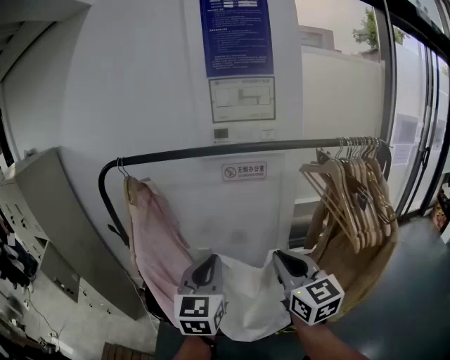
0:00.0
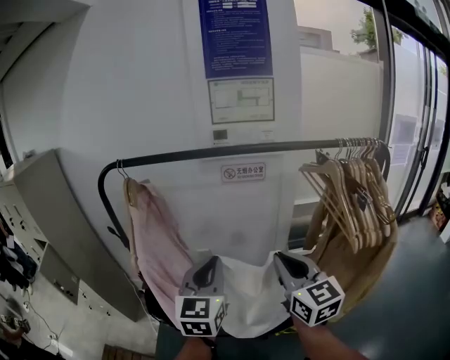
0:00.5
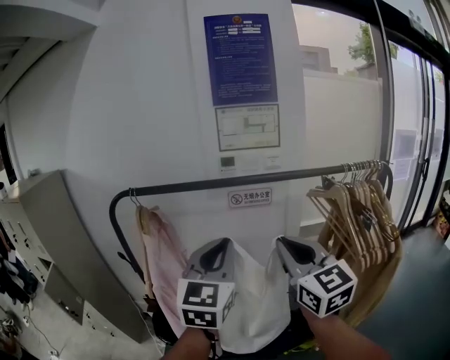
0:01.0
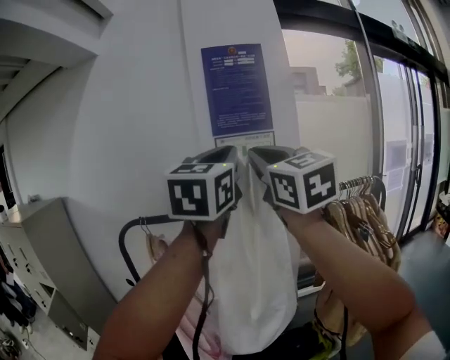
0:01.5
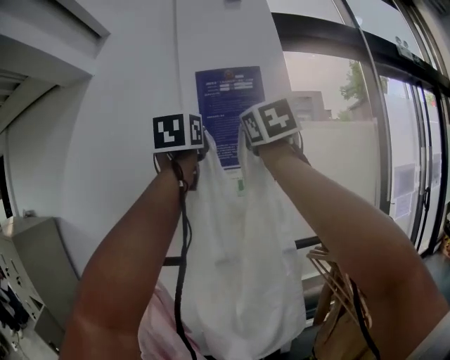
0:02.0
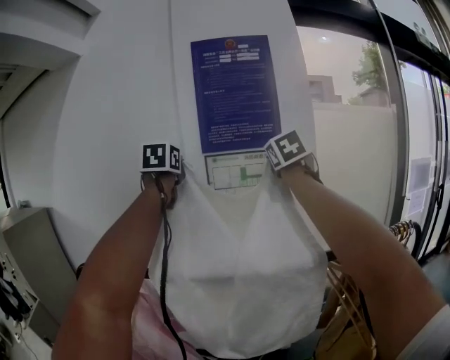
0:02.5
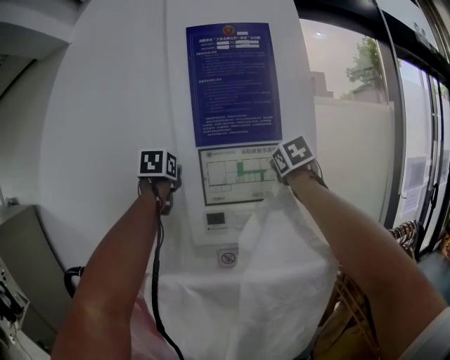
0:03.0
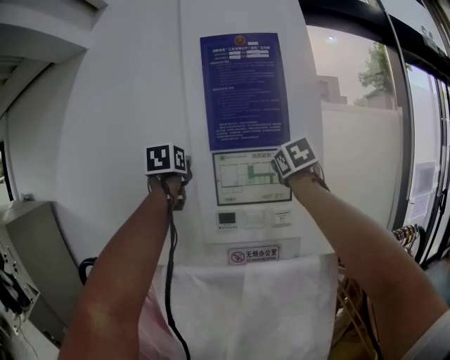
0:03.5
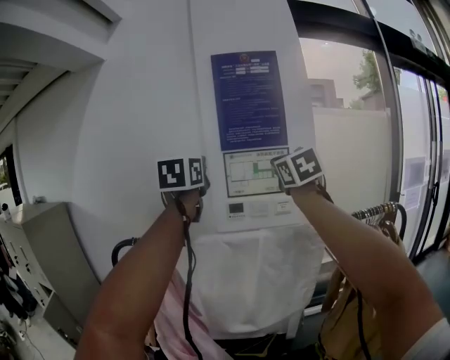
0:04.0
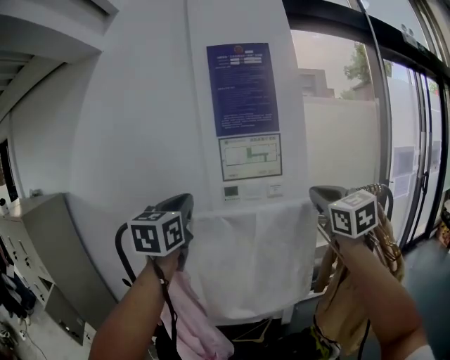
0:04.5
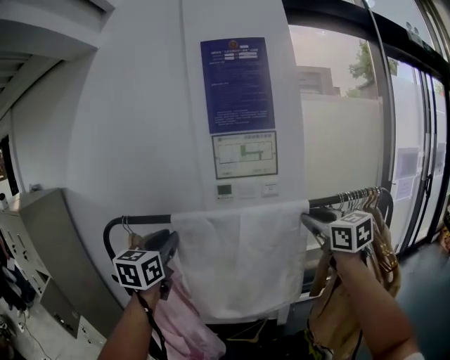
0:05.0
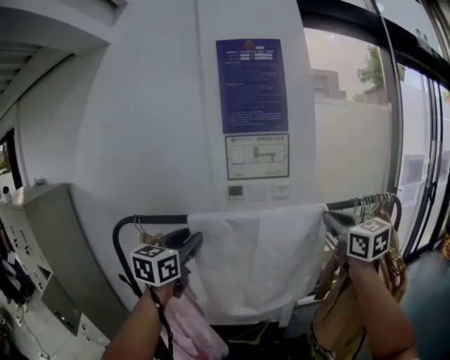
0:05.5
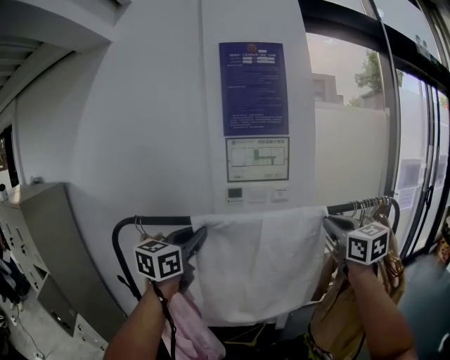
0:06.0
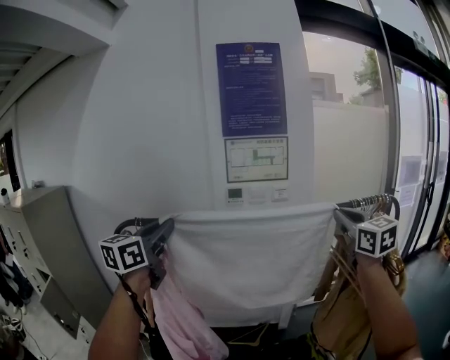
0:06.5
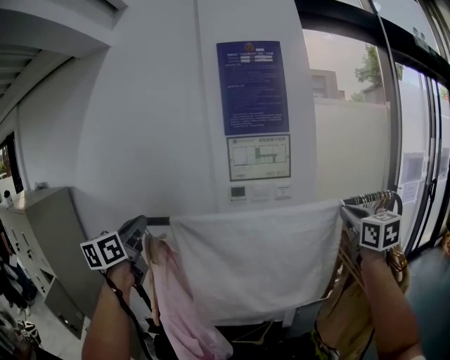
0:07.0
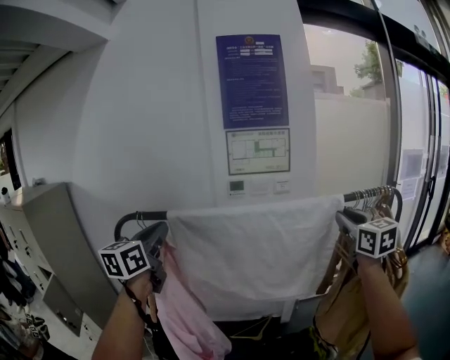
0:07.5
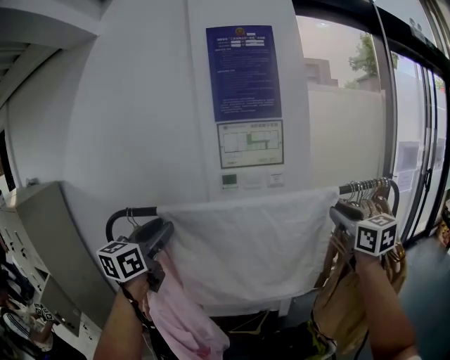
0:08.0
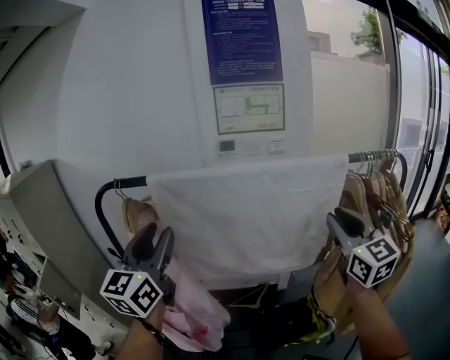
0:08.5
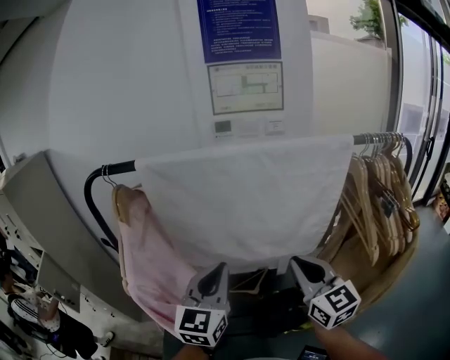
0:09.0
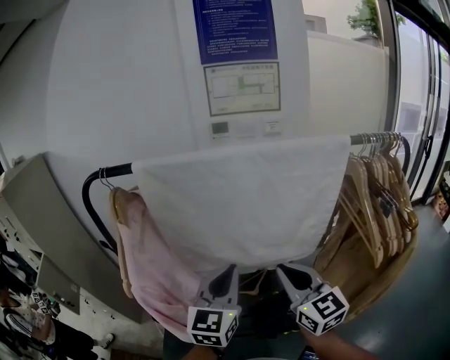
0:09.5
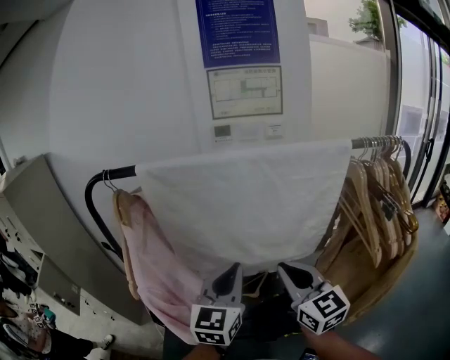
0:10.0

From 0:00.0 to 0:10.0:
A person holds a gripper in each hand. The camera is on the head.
From 0:00.0 to 0:02.0: Both grippers move upward and forward, roughly 60 cm. The right gripper rotates about 30 degrees.
From 0:02.0 to 0:04.0: The right gripper is displaced downward by about 15 cm, and moves some 30 cm forward and comes back; the left gripper shifts approximately 15 cm downward and to the left, and reaches about 30 cm forward, then returns.
From 0:04.0 to 0:06.0: The left gripper heads downward and backward, covering approximately 25 cm, changes its angle by roughly 20 degrees, and opens, then closes once more. The right gripper is displaced downward, backward and to the right by roughly 25 cm.
From 0:06.0 to 0:08.0: The left gripper moves to the left, approximately 10 cm, and opens.
From 0:08.0 to 0:10.0: The left gripper moves downward, to the right and backward, roughly 30 cm, and closes its fingers. Meanwhile the right gripper goes about 30 cm downward, to the left and backward.

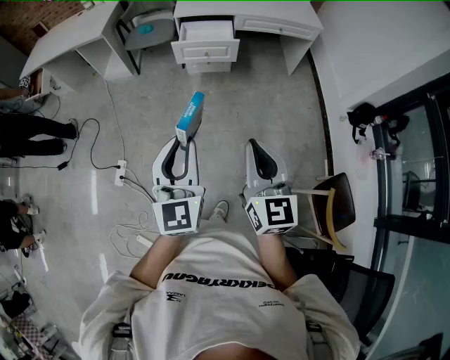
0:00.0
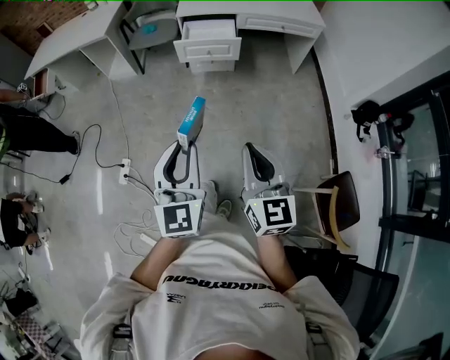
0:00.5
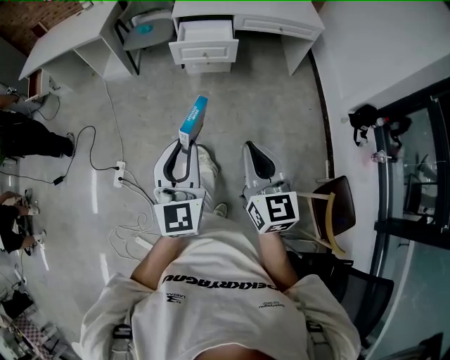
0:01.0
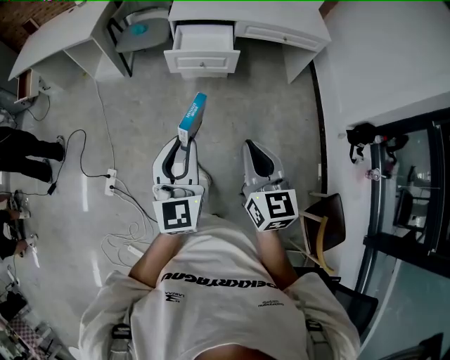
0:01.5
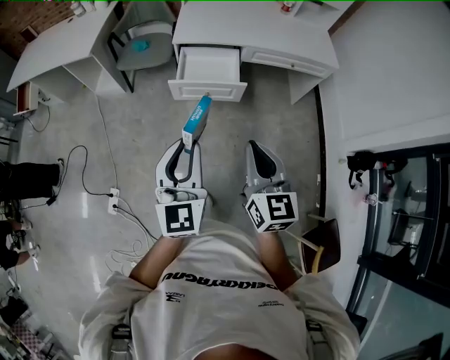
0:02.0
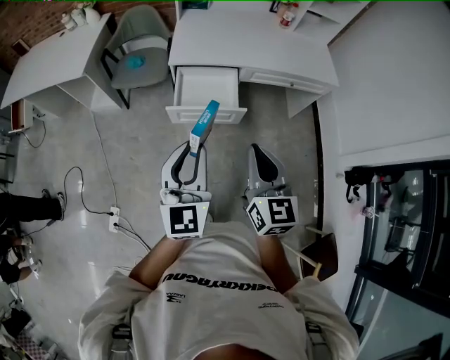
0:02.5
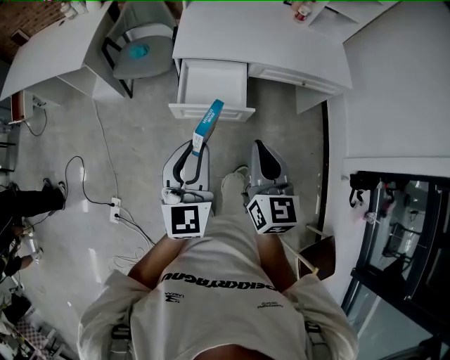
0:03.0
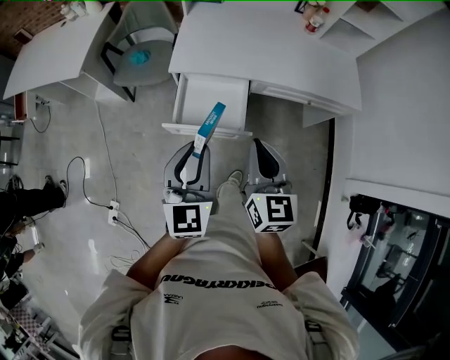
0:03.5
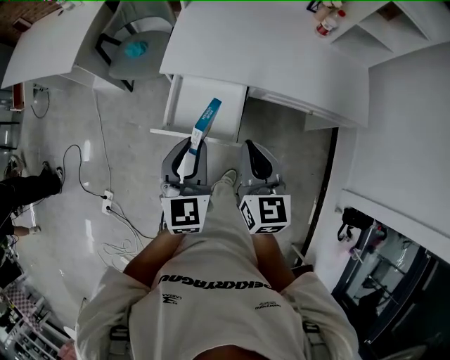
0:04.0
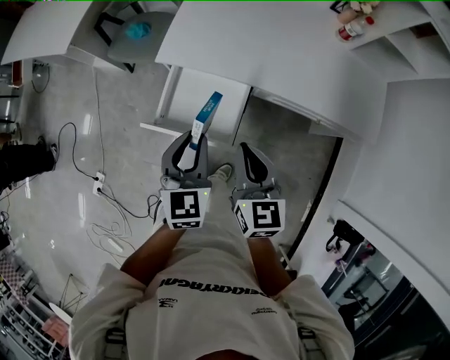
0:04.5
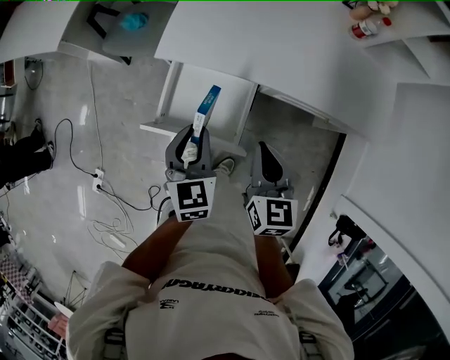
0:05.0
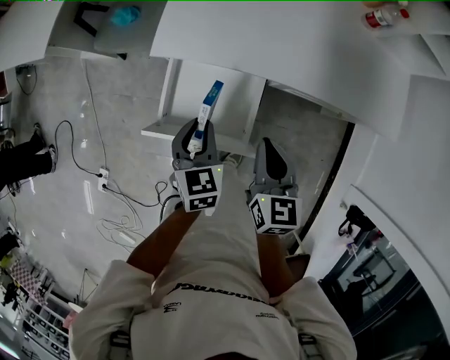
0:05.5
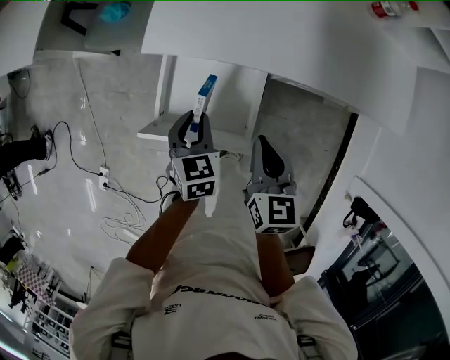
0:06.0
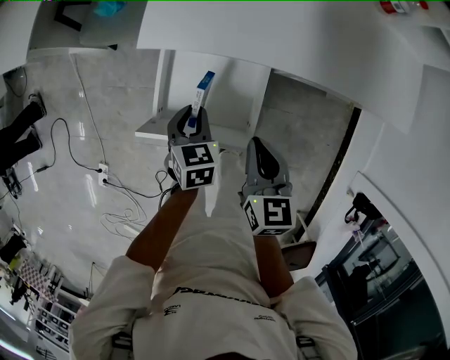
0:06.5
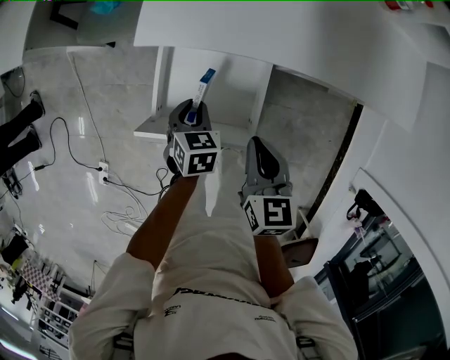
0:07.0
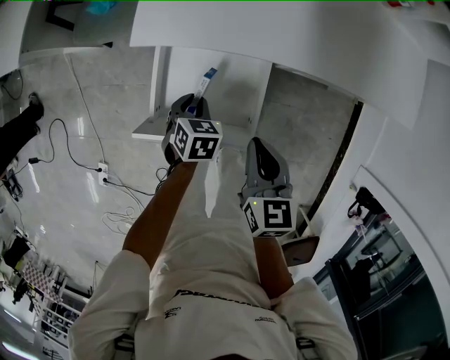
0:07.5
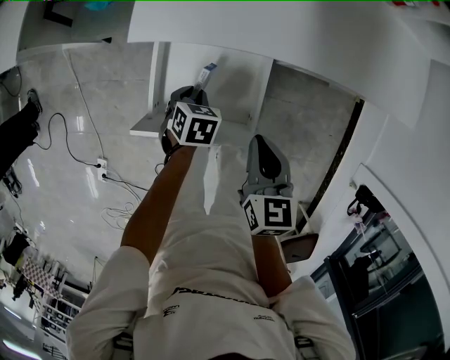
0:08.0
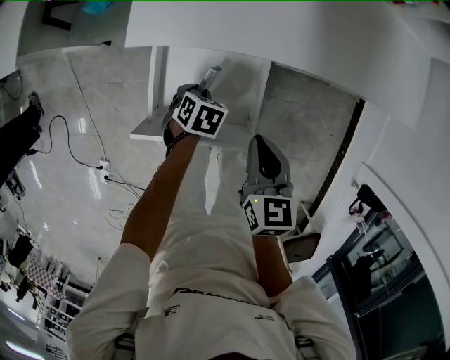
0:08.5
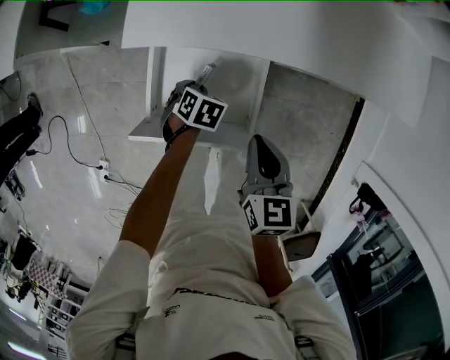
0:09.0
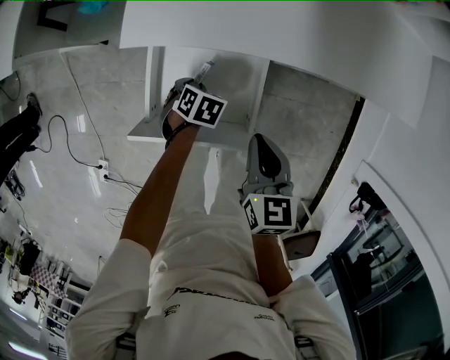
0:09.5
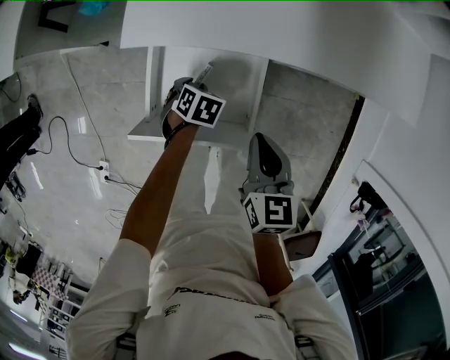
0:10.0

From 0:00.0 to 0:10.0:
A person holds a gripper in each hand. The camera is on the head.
From 0:00.0 to 0:02.0: The two grippers go about 35 cm forward.
From 0:02.0 to 0:04.0: The pair of grippers is taken forward, some 40 cm.
From 0:04.0 to 0:06.0: The grippers both shift downward and forward by some 25 cm. The left gripper swivels roughly 30 degrees.
From 0:06.0 to 0:08.0: The right gripper shifts by approximately 5 cm. Meanwhile the left gripper goes approximately 15 cm downward, and turns by roughly 30 degrees.
From 0:08.0 to 0:10.0: The left gripper ends up some 5 cm from where it was.

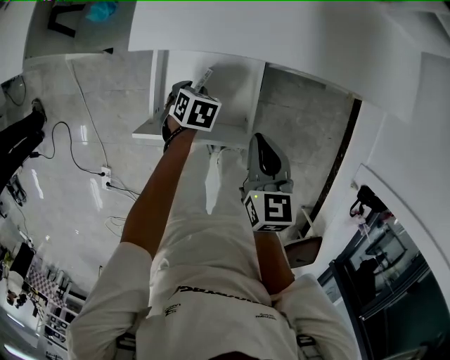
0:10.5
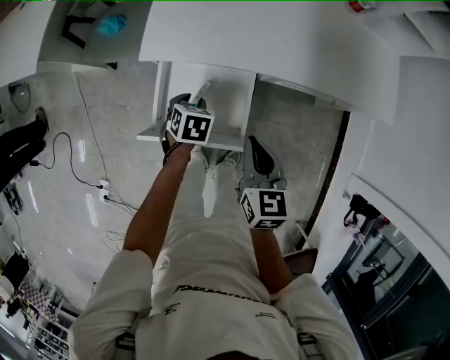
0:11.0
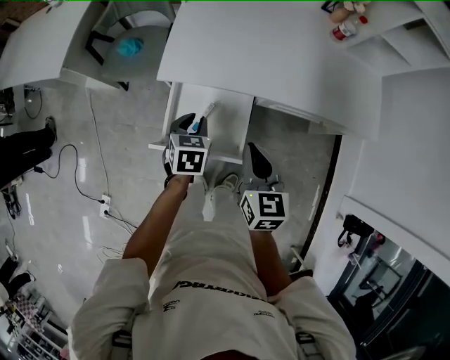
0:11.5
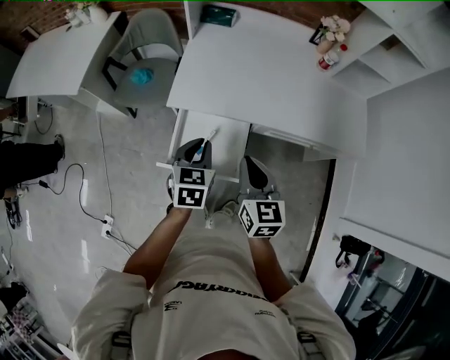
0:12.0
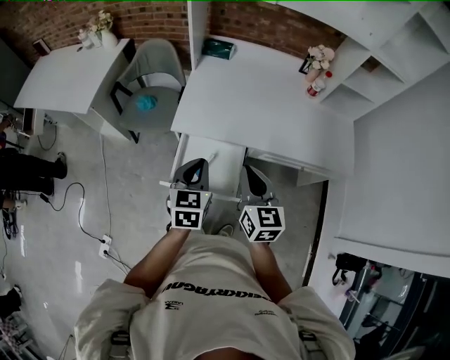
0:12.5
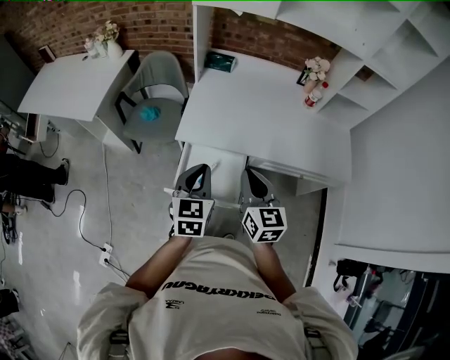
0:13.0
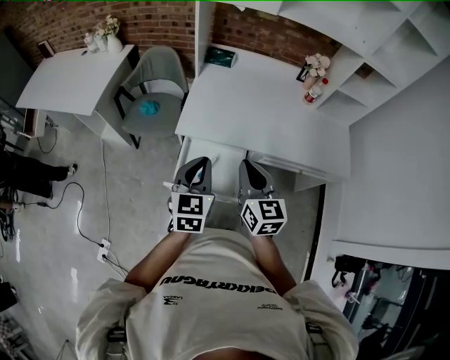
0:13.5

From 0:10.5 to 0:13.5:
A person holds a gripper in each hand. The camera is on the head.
From 0:10.5 to 0:12.0: The left gripper is displaced upward by about 35 cm, angles its fingers upward, by some 40 degrees, and closes up. Meanwhile the right gripper is displaced upward by approximately 20 cm.
From 0:12.0 to 0:13.5: Both grippers move upward, roughly 10 cm.

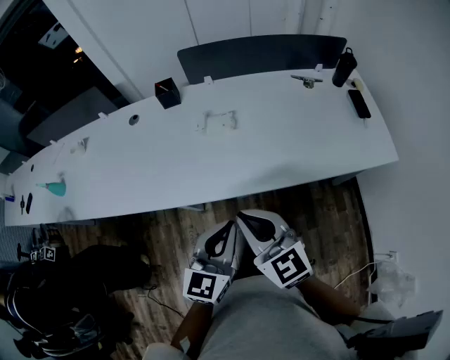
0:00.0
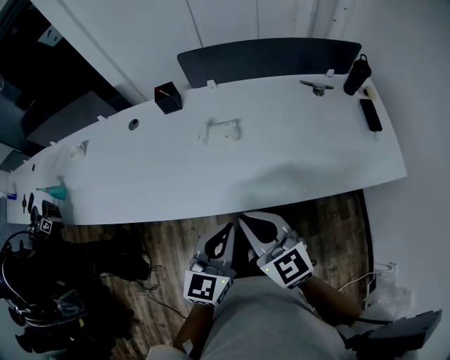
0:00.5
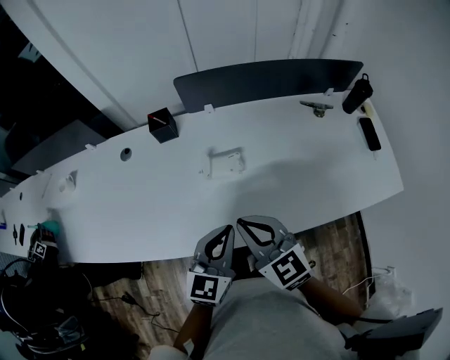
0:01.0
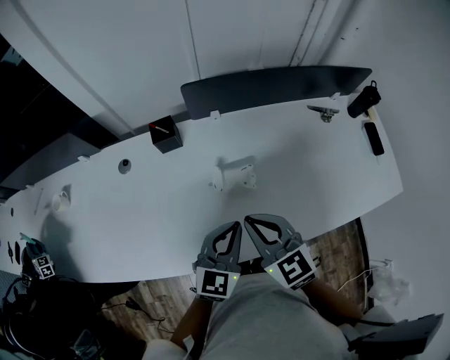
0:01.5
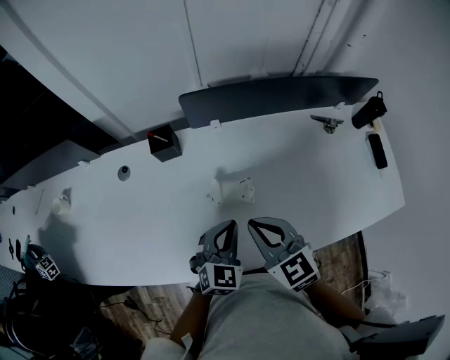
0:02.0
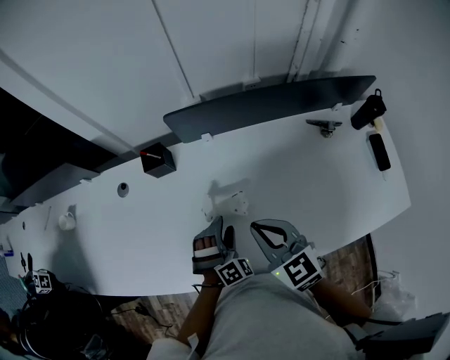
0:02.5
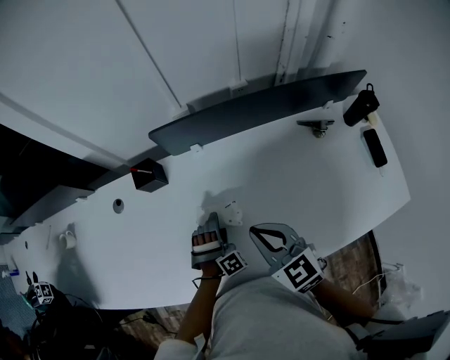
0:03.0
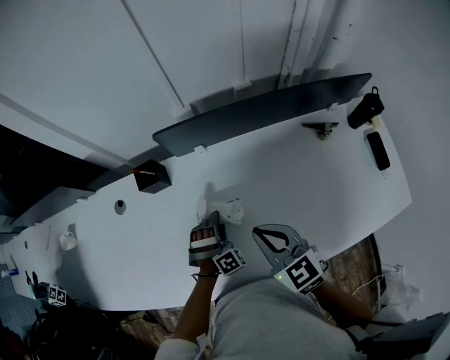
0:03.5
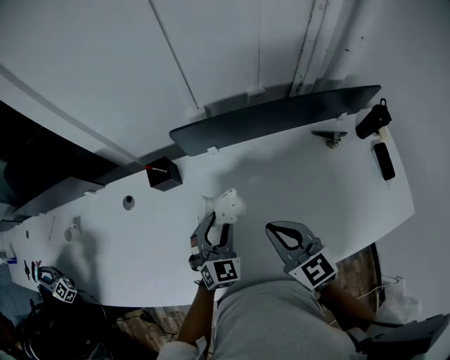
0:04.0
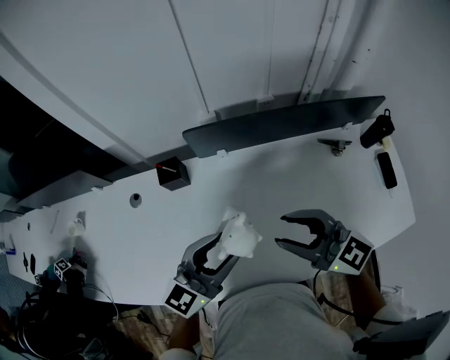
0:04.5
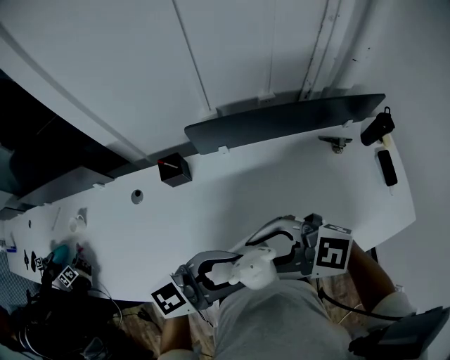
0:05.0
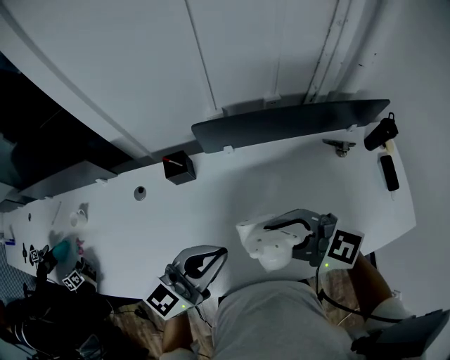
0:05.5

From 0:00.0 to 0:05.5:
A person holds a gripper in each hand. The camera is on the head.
From 0:00.0 to 0:02.0: Both grippers travel together forward, approximately 30 cm. The left gripper turns by some 30 degrees.
From 0:02.0 to 0:03.5: The right gripper moves to the right, some 5 cm. The left gripper heads downward and forward, covering approximately 15 cm, rotates around the line of its fingers by about 50 degrees, clockwise from behind, and opens.
From 0:03.5 to 0:05.5: The right gripper moves upward, about 10 cm, turns by approximately 40 degrees, and opens; the left gripper goes about 30 cm upward, angles its fingers upward, by approximately 40 degrees, and closes up.
